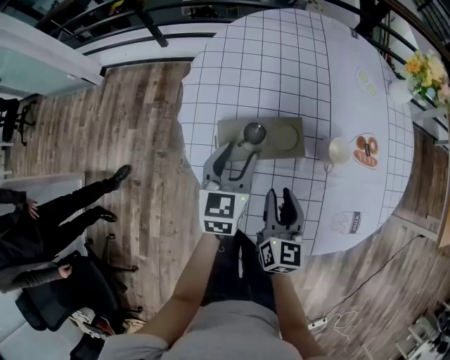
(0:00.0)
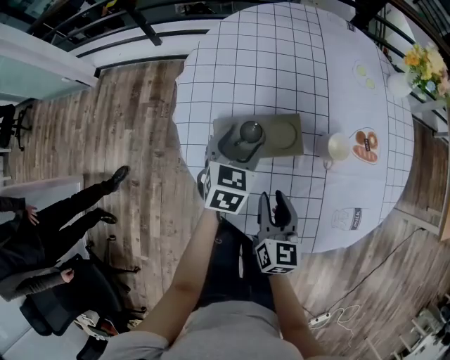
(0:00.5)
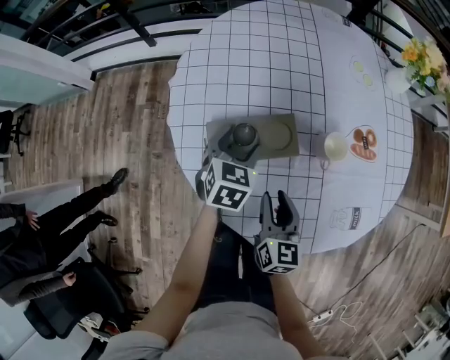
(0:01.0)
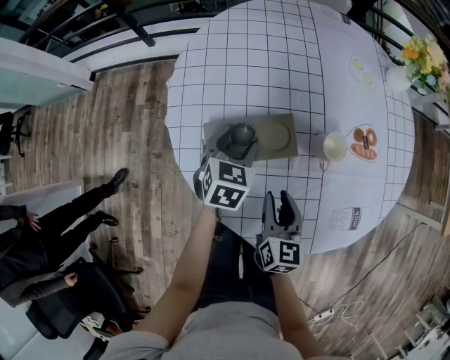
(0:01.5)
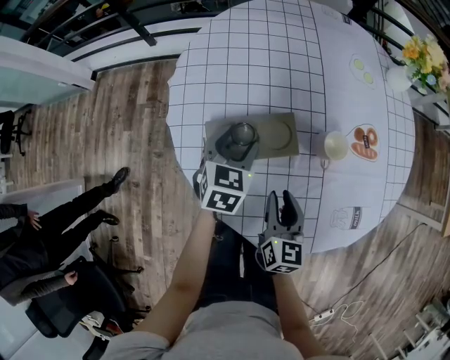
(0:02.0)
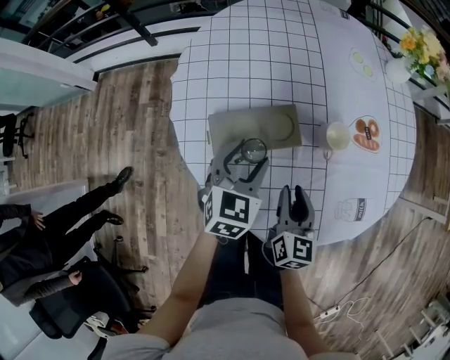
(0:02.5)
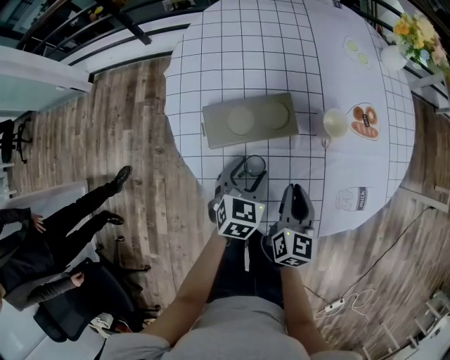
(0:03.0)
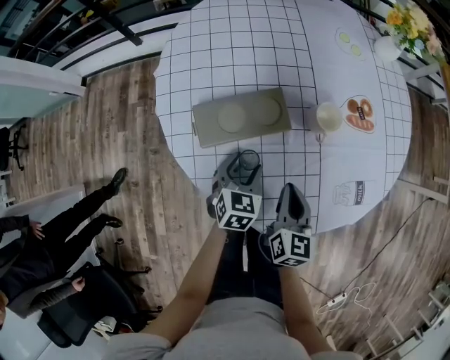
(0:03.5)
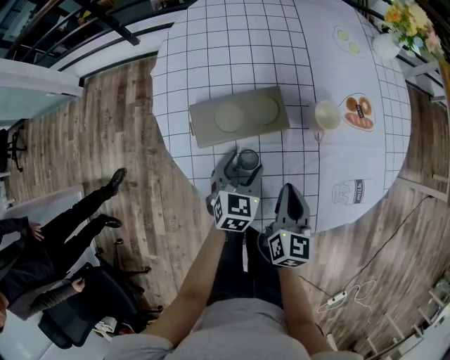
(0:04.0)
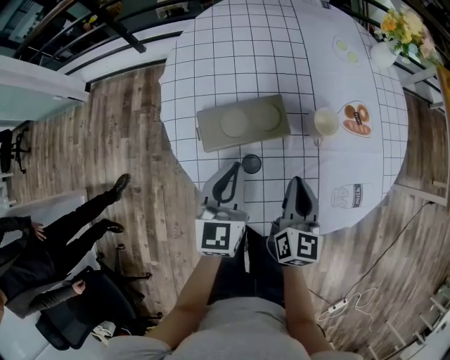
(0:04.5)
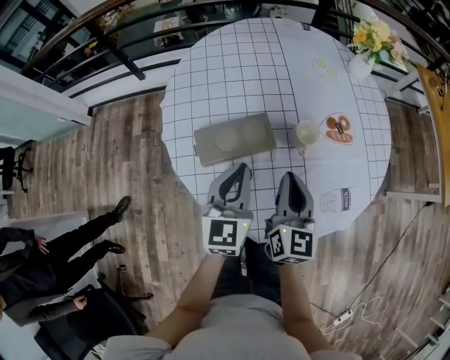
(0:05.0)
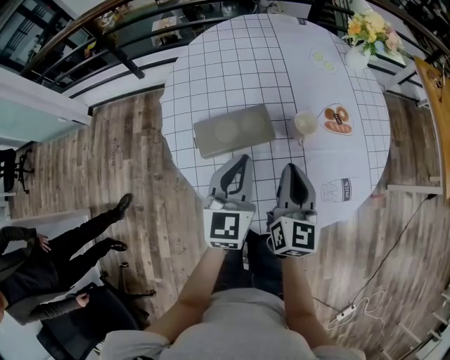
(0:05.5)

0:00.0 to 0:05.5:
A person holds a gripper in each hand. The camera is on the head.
0:00.0 to 0:02.0: The left gripper moves about 5 cm.
0:02.0 to 0:03.5: The left gripper goes about 15 cm backward, downward and to the right, while the right gripper changes place by some 5 cm, and closes up.
0:03.5 to 0:05.5: The two grippers go approximately 15 cm upward. The left gripper tilts its fingers some 30 degrees upward, and closes up.

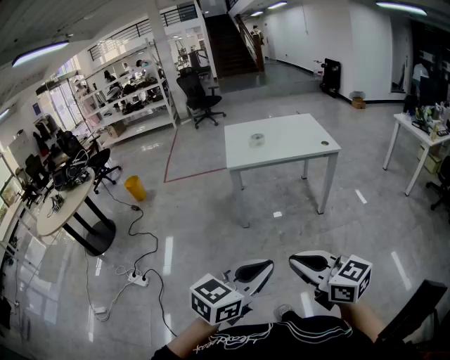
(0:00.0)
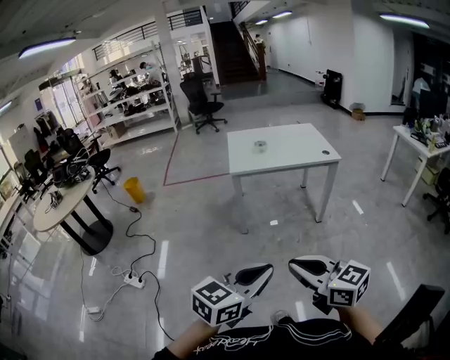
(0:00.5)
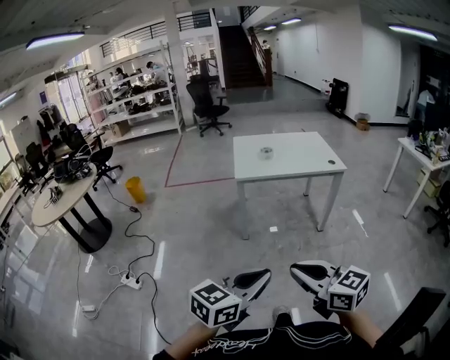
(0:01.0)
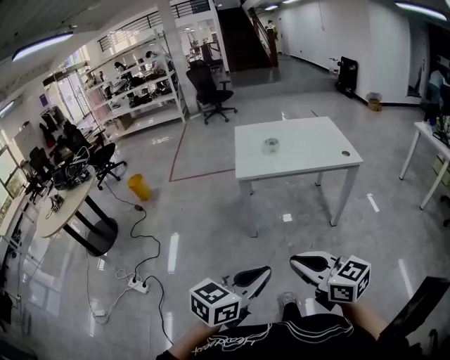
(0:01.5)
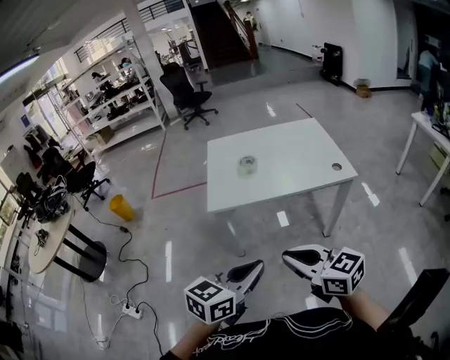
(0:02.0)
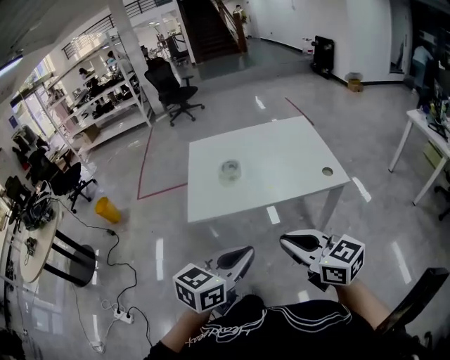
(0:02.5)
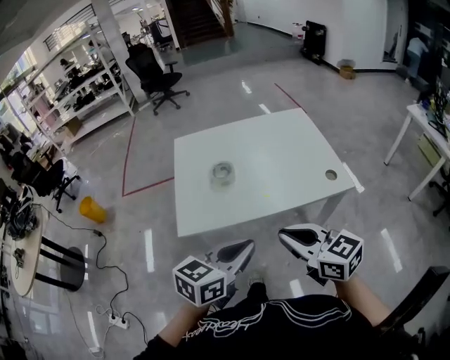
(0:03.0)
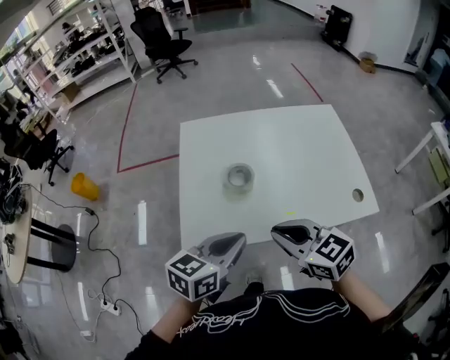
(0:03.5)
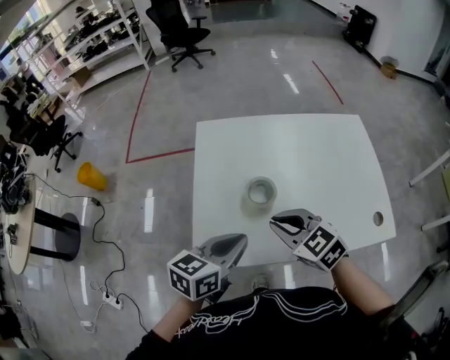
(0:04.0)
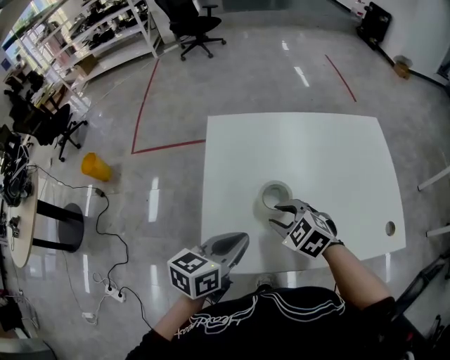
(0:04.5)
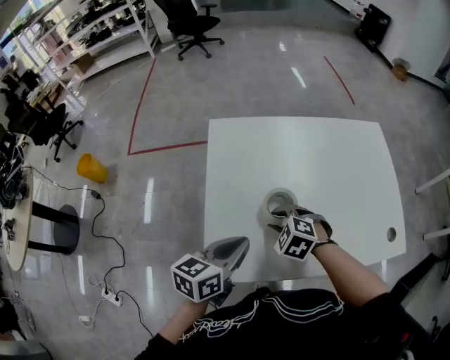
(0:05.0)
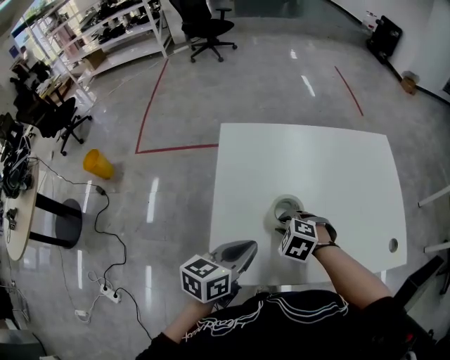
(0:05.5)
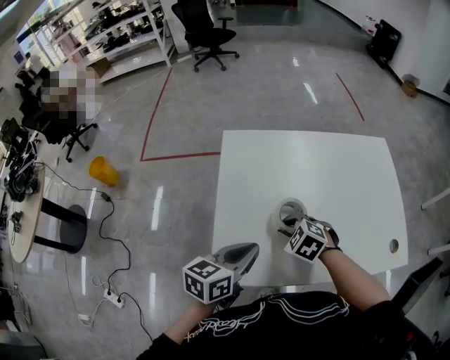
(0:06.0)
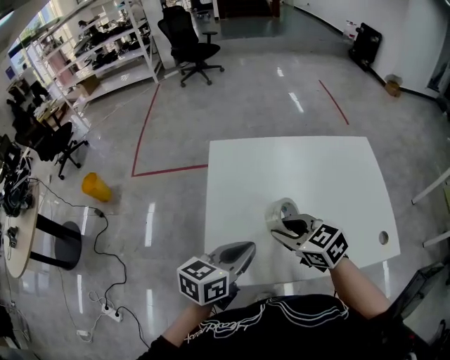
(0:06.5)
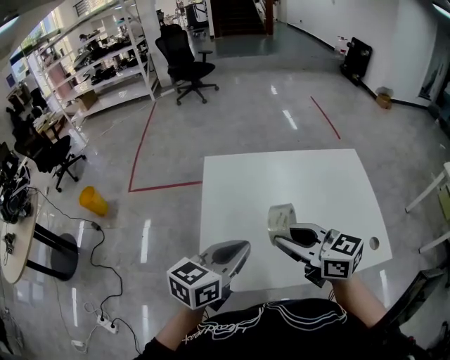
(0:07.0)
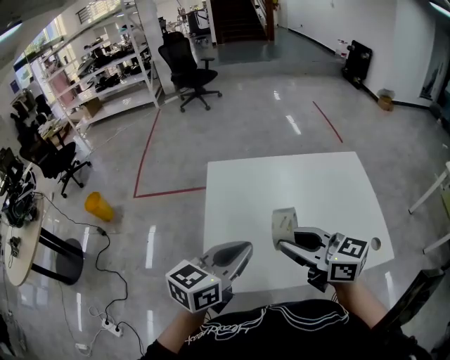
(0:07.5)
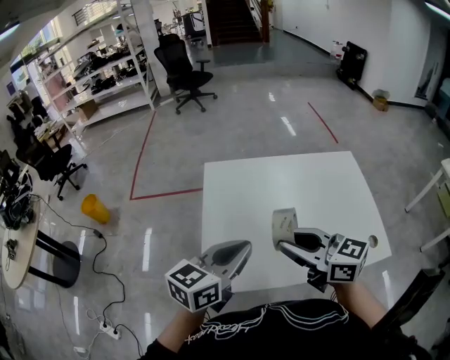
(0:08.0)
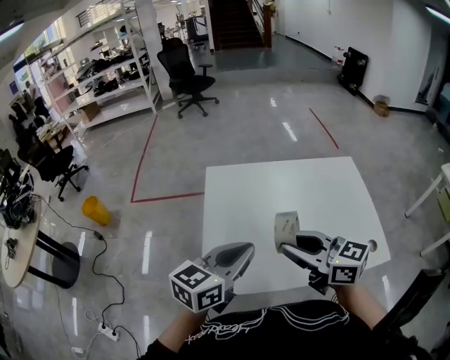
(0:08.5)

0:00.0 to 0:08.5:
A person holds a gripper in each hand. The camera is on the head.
0:00.0 to 0:02.0: The pair of grippers is taken forward, approximately 40 cm.
0:02.0 to 0:04.0: The pair of grippers is taken forward, approximately 50 cm. The right gripper swivels about 30 degrees.
0:04.0 to 0:06.5: The right gripper goes approximately 5 cm forward, and moves about 15 cm downward and comes back.
0:06.5 to 0:08.5: The left gripper goes some 10 cm upward; the right gripper goes approximately 15 cm upward and backward, and rotates some 30 degrees.

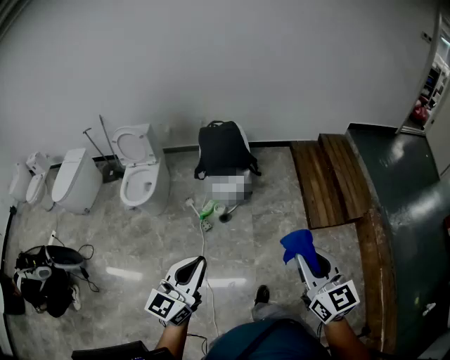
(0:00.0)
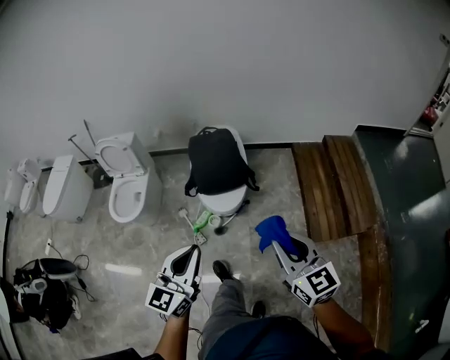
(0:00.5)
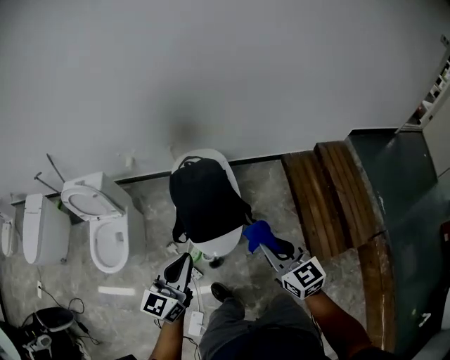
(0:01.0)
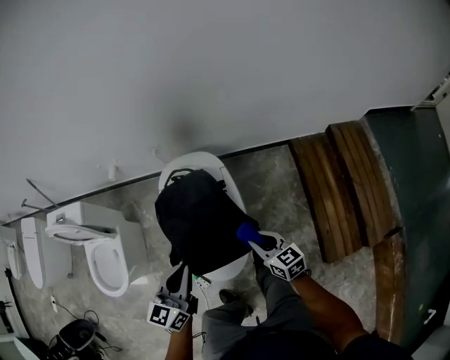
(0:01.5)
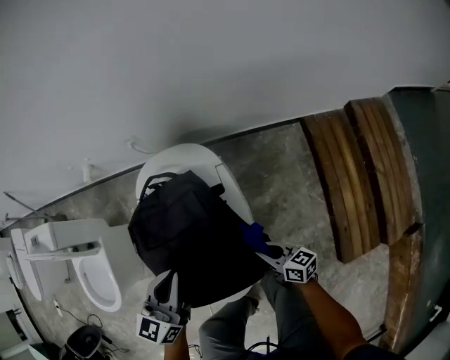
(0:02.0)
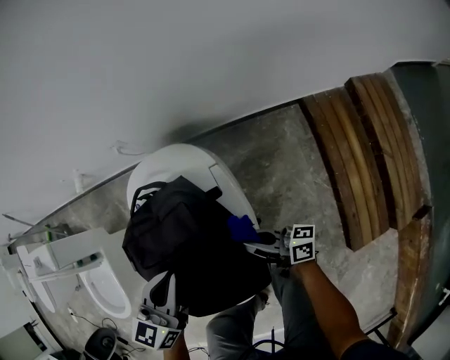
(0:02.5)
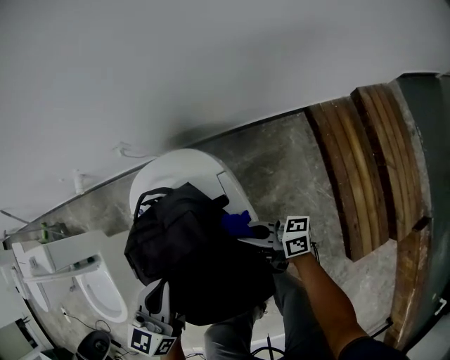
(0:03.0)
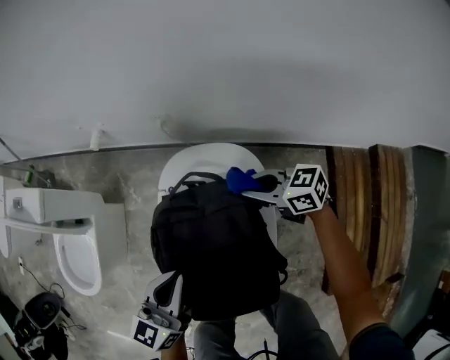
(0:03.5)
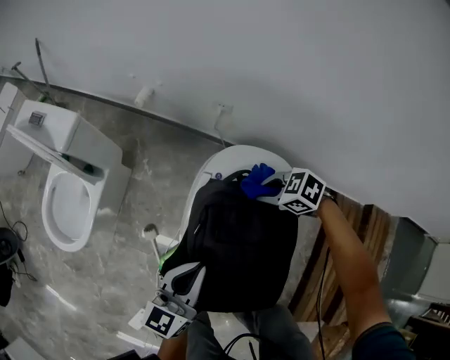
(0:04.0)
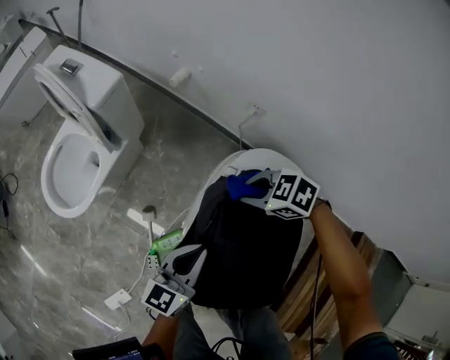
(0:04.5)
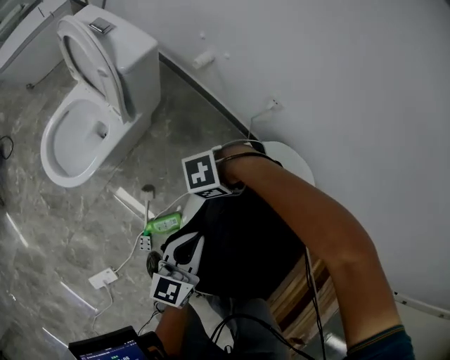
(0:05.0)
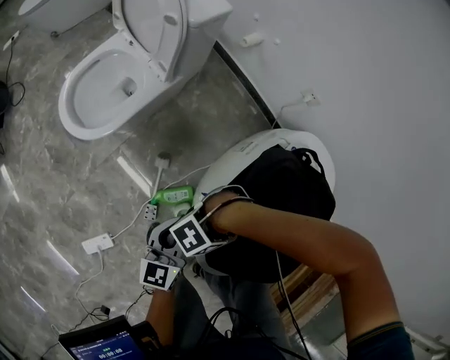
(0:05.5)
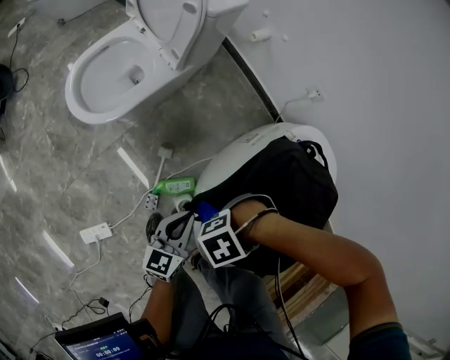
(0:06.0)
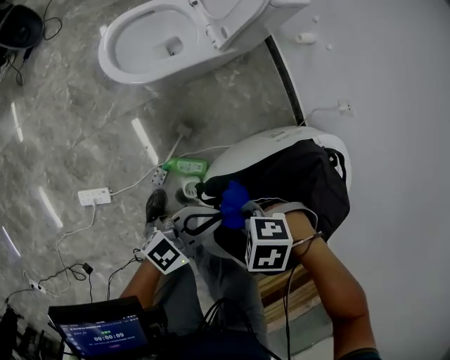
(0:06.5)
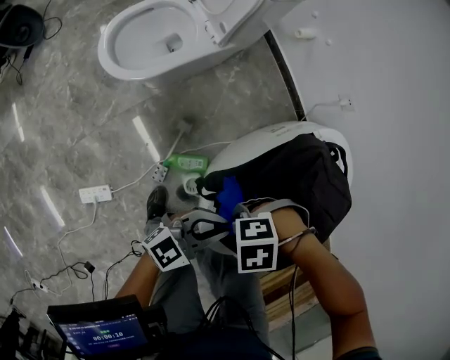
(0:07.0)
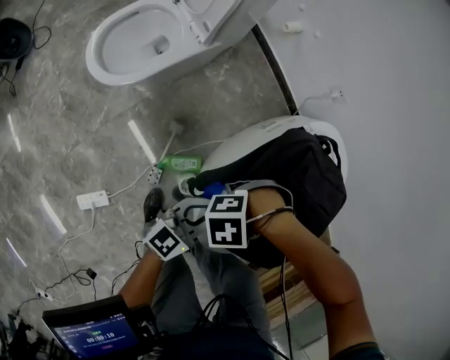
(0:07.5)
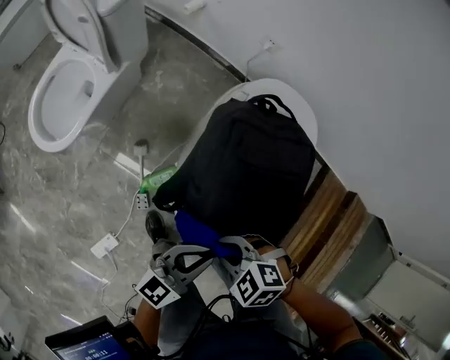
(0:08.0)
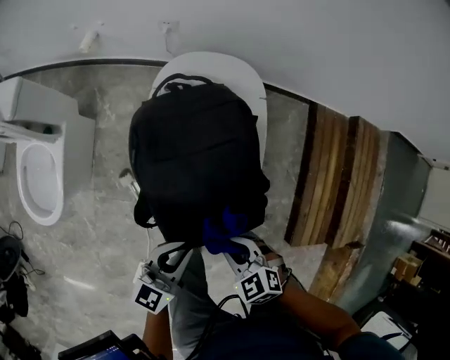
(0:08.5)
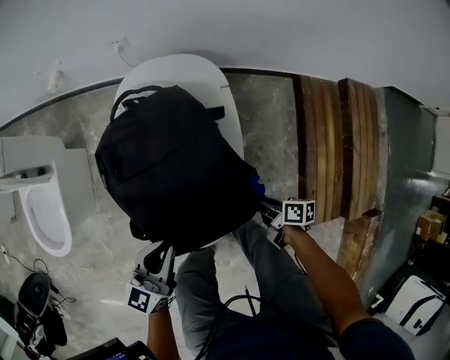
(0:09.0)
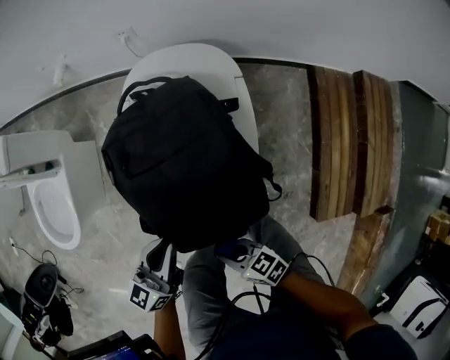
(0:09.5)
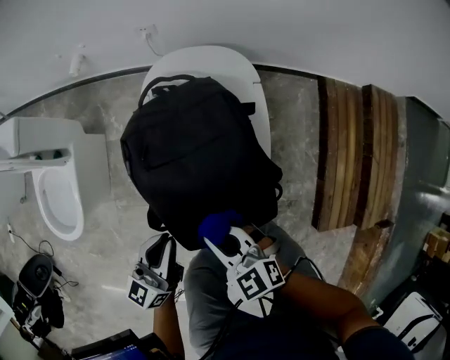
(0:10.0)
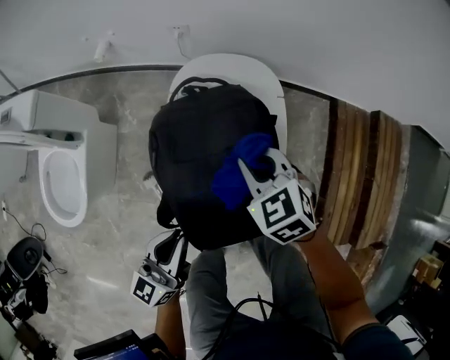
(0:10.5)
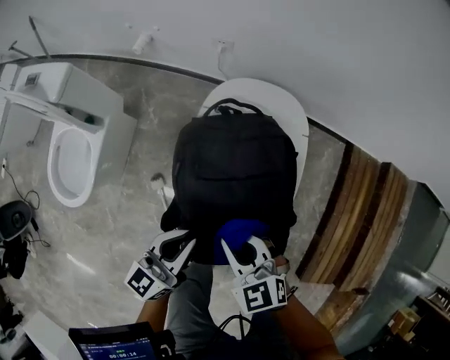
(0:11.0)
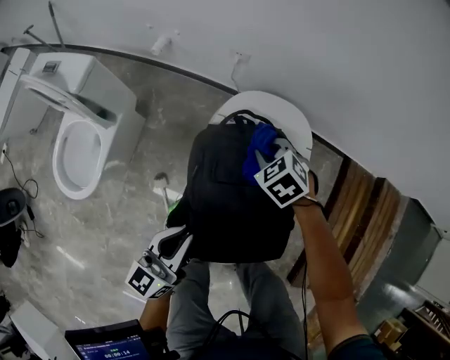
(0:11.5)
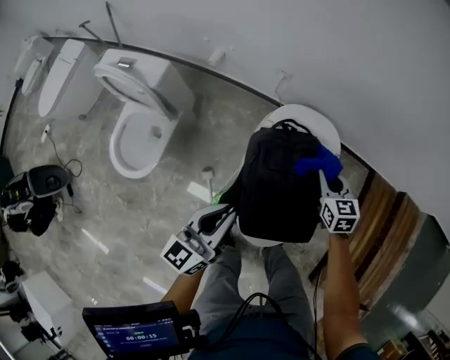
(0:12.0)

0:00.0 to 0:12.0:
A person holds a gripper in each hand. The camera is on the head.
0:00.0 to 0:02.0: The pair of grippers is taken forward, roughly 80 cm. The right gripper shifts some 60 cm downward, and turns by roughly 50 degrees.
0:02.0 to 0:04.0: The right gripper ends up approximately 30 cm from where it was, and tips its fingers downward by approximately 40 degrees. The left gripper ends up about 10 cm from where it was, and changes its angle by some 20 degrees.
0:04.0 to 0:06.0: The right gripper moves approximately 35 cm, and turns by about 90 degrees. Meanwhile the left gripper moves approximately 25 cm, and turns by roughly 30 degrees.
0:06.0 to 0:08.0: The left gripper changes place by approximately 20 cm, and rotates about 50 degrees; the right gripper shifts roughly 5 cm upward, and turns by some 70 degrees.
0:08.0 to 0:10.0: The left gripper ends up roughly 10 cm from where it was; the right gripper goes downward and returns, some 15 cm each way, and swivels about 60 degrees.
0:10.0 to 0:12.0: The left gripper shifts roughly 15 cm upward; the right gripper moves forward and backward over approximately 25 cm, changing direction 3 times, and turns by approximately 20 degrees.
